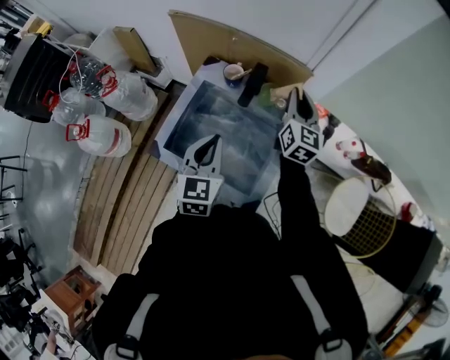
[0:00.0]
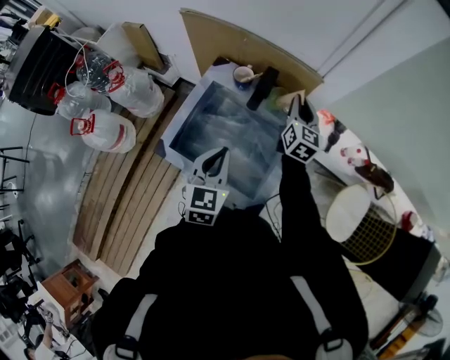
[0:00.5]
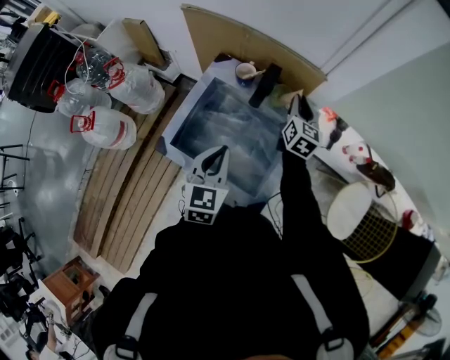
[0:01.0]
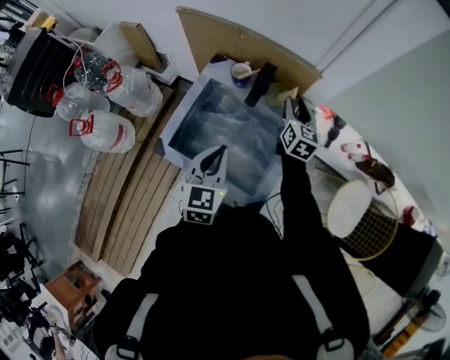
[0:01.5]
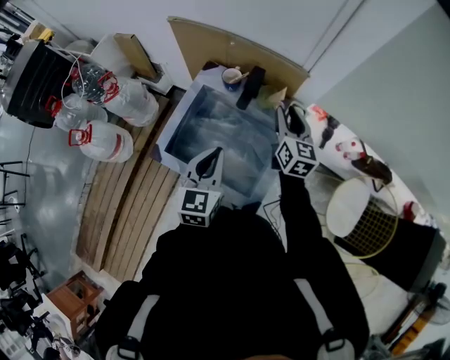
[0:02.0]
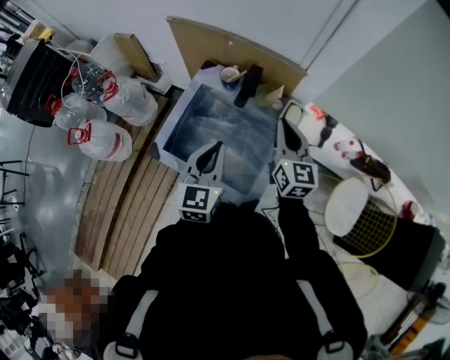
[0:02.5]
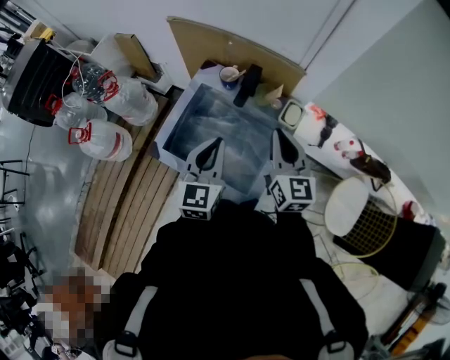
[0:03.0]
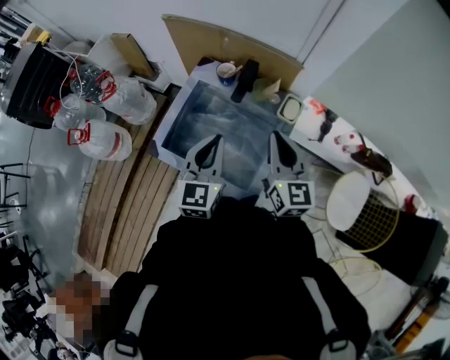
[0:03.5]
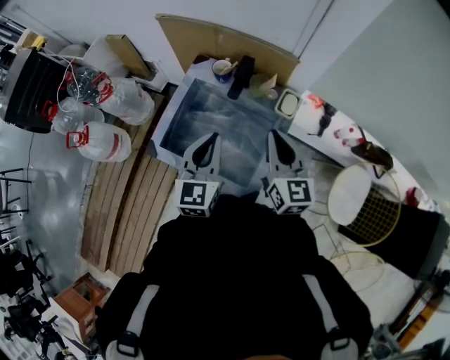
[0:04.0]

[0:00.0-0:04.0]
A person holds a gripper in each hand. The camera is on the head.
0:00.0 to 0:02.0: The right gripper changes place by some 5 cm, and opens up.
0:02.0 to 0:04.0: The right gripper travels backward and upward by some 15 cm, and closes up.

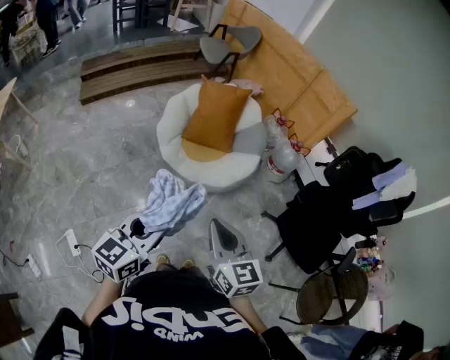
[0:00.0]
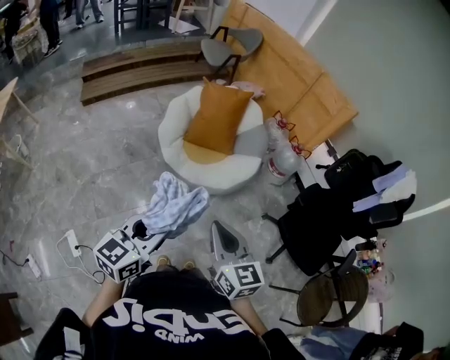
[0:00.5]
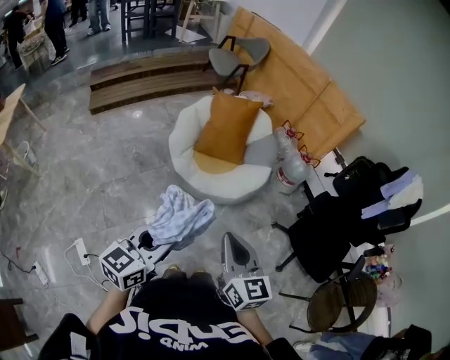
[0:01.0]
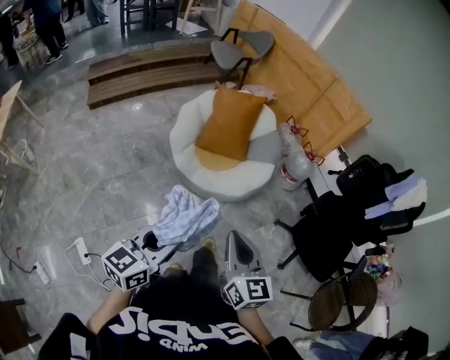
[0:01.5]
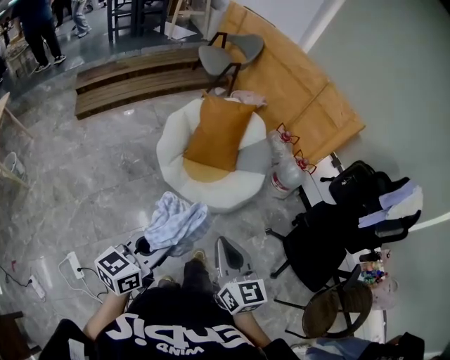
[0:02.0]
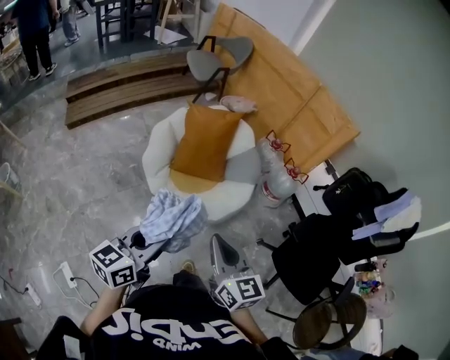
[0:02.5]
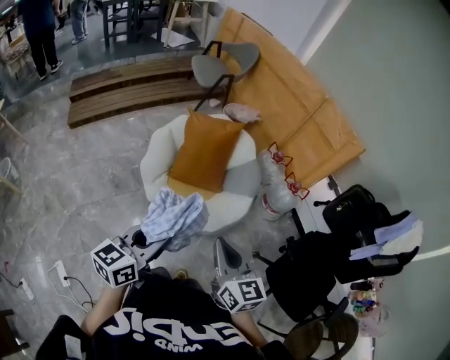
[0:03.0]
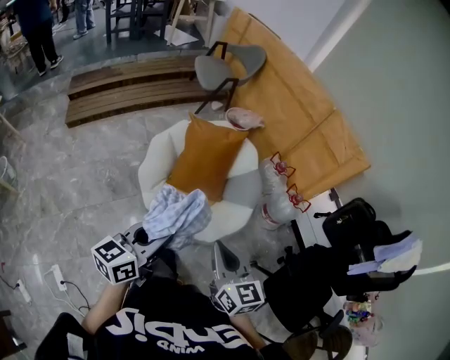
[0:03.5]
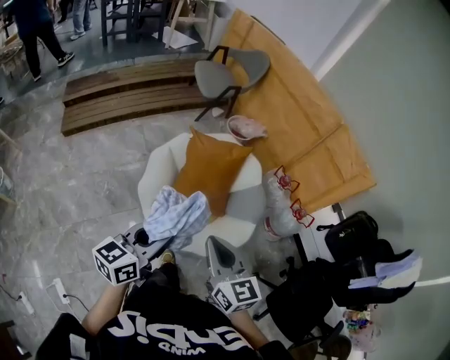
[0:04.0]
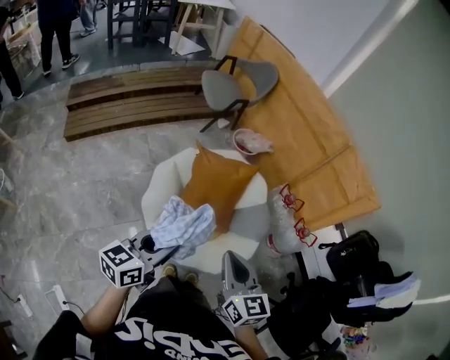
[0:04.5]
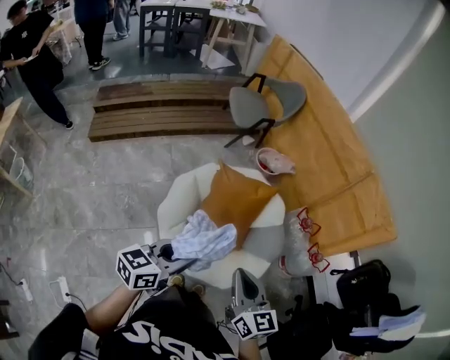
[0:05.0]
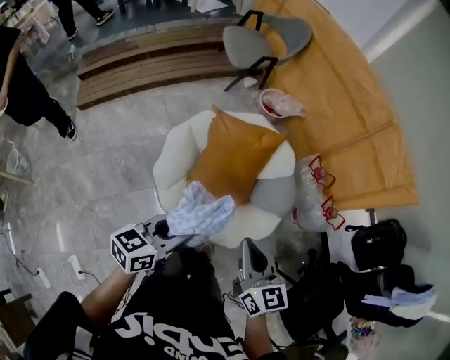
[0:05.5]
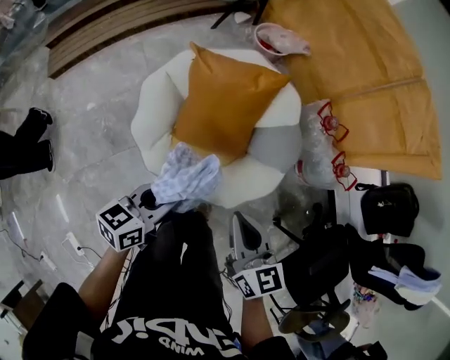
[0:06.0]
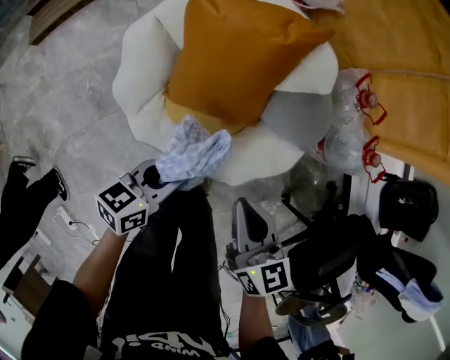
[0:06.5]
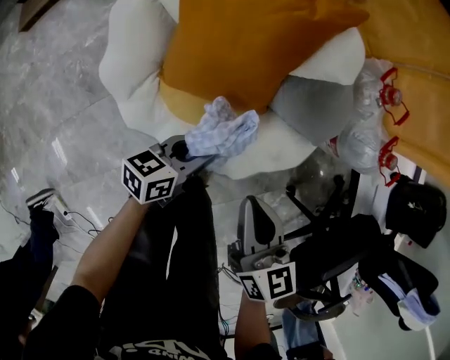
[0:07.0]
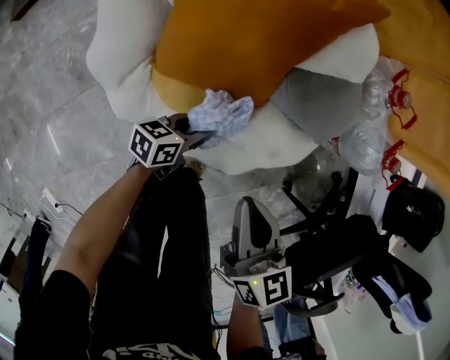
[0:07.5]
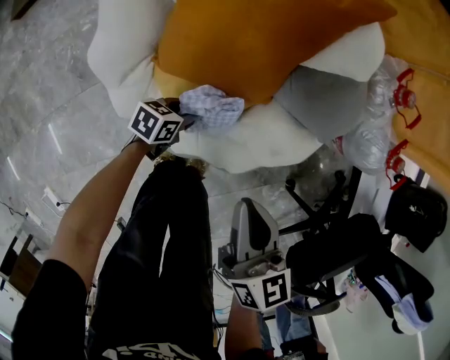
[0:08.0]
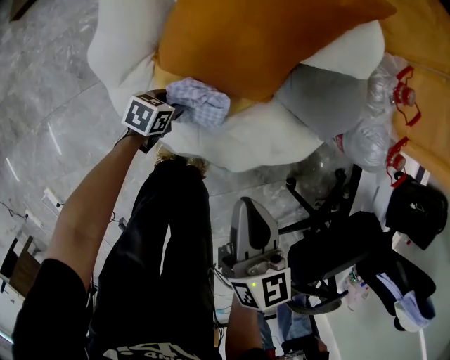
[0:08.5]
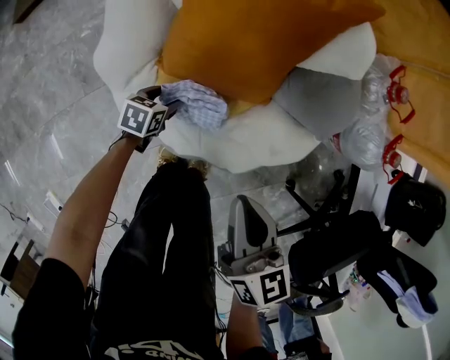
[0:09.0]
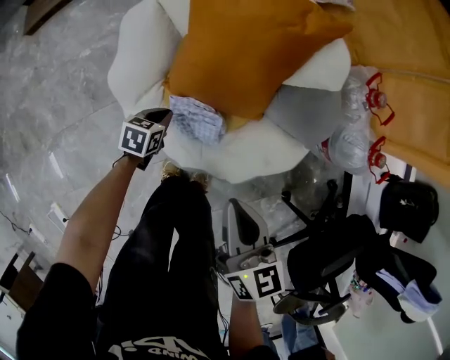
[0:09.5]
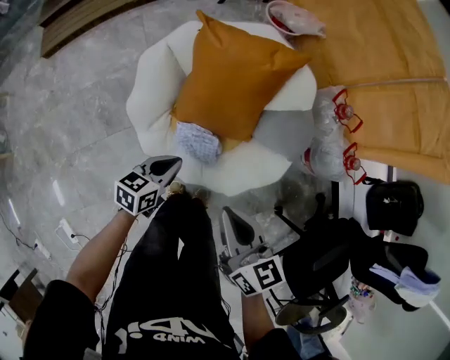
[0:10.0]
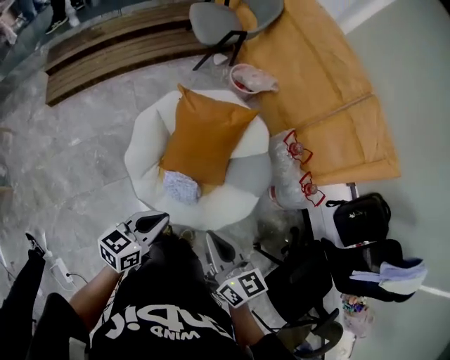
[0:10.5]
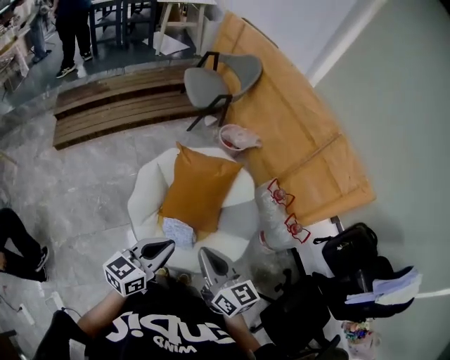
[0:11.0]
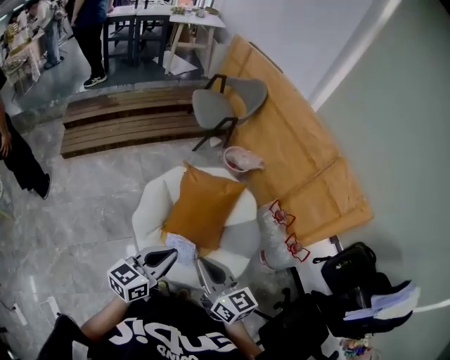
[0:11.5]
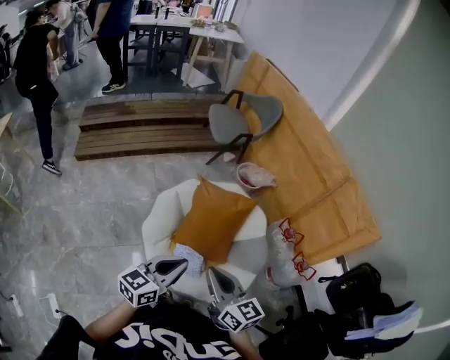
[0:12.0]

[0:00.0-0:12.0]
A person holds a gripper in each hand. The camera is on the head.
0:00.0 to 0:02.0: The grippers both shift forward by about 10 cm.
0:02.0 to 0:04.0: Both grippers move forward, approximately 40 cm.
0:04.0 to 0:06.0: Both grippers travel together downward and forward, approximately 25 cm.
0:06.0 to 0:08.0: The right gripper is displaced downward by about 25 cm, while the left gripper travels downward by about 50 cm, and turns by approximately 30 degrees.
0:08.0 to 0:10.0: The right gripper goes some 20 cm upward; the left gripper is displaced upward by some 30 cm, swivels some 20 degrees, and closes its fingers.
0:10.0 to 0:12.0: The right gripper moves upward, roughly 25 cm, and changes its angle by some 20 degrees; the left gripper shifts roughly 40 cm upward, and changes its angle by approximately 30 degrees.

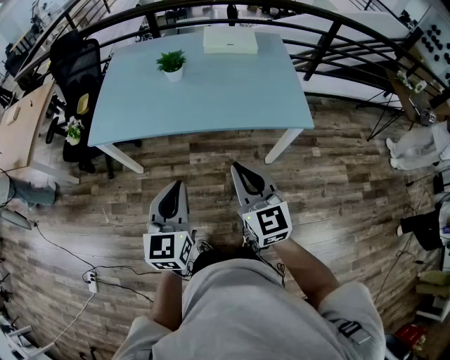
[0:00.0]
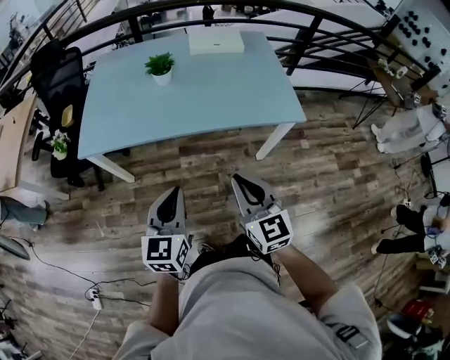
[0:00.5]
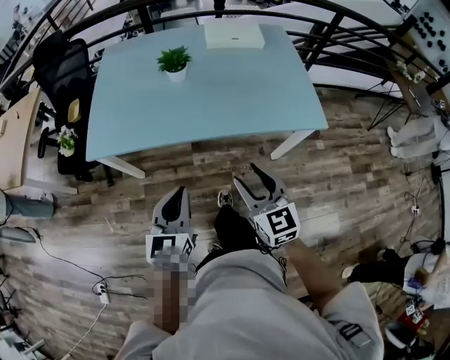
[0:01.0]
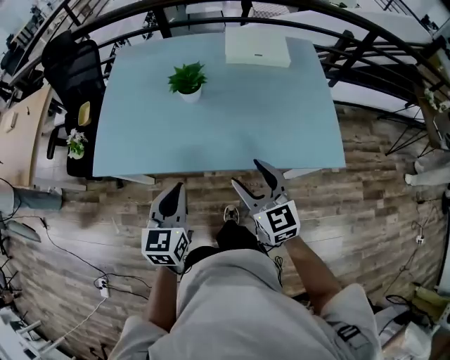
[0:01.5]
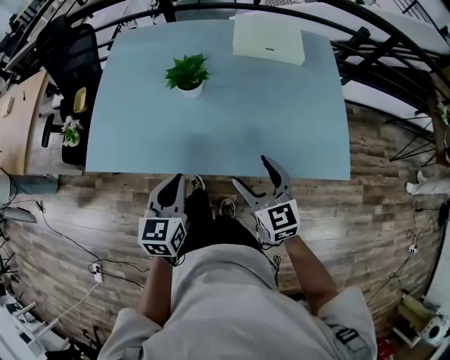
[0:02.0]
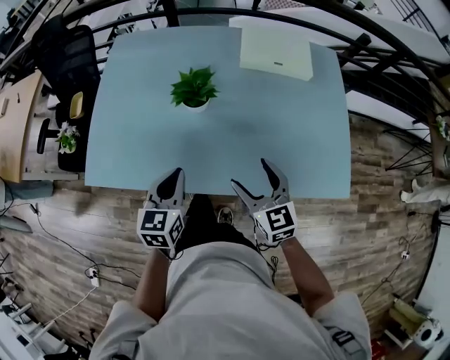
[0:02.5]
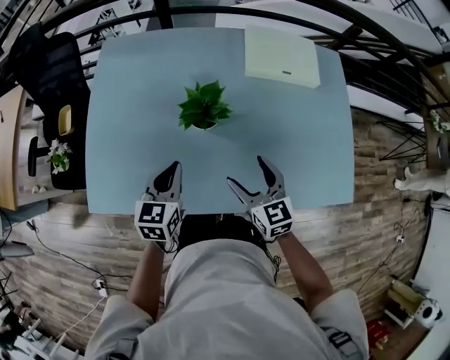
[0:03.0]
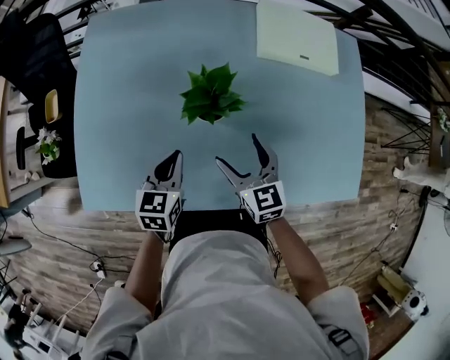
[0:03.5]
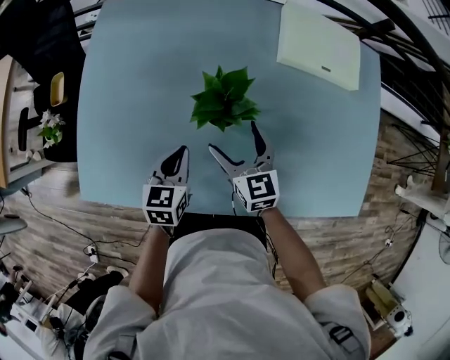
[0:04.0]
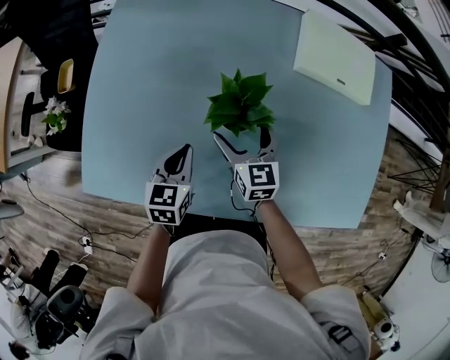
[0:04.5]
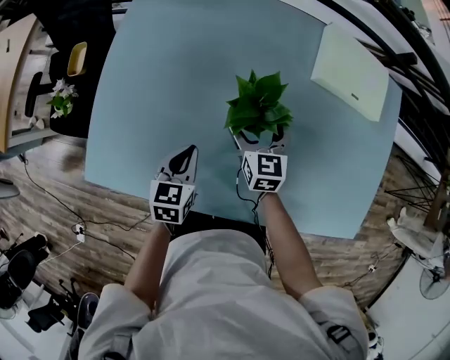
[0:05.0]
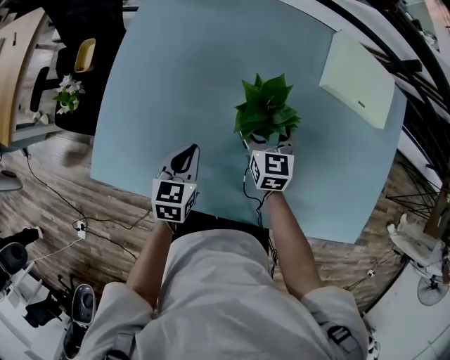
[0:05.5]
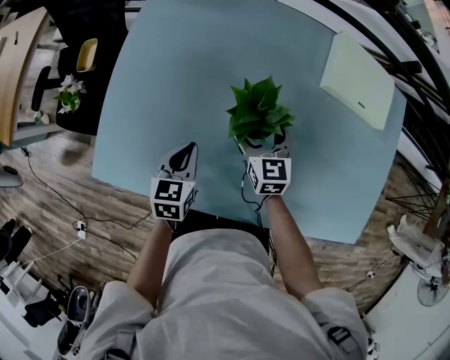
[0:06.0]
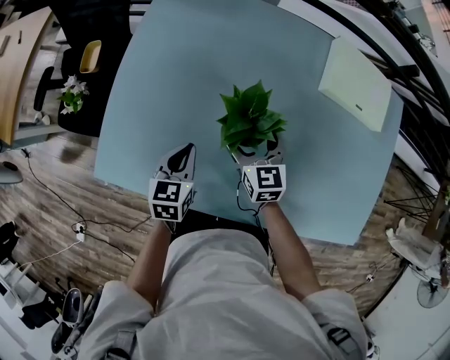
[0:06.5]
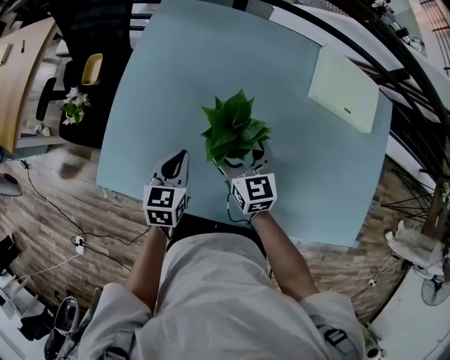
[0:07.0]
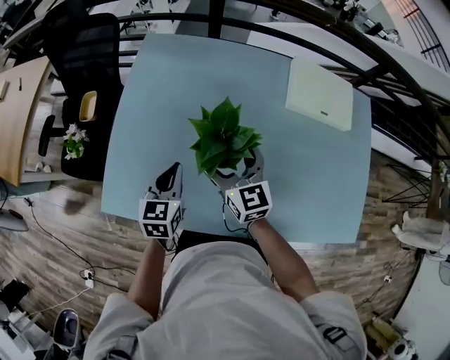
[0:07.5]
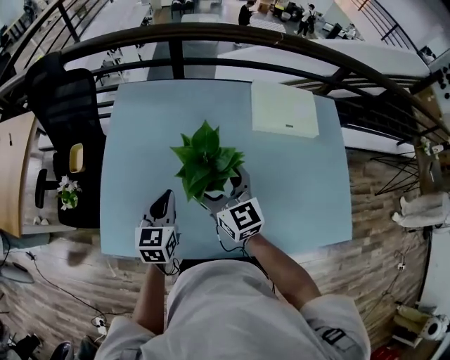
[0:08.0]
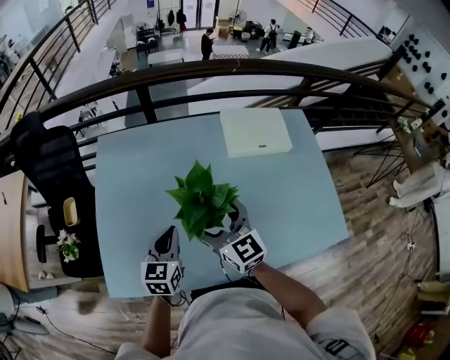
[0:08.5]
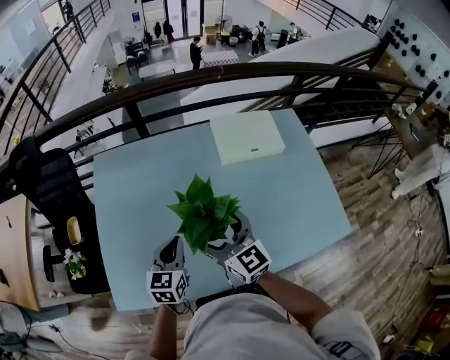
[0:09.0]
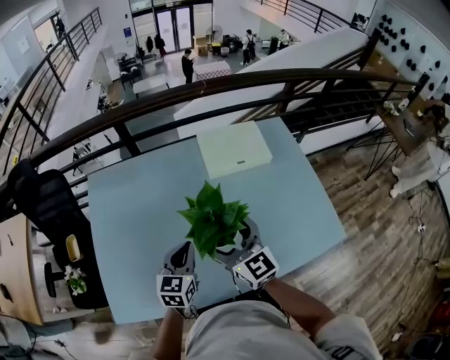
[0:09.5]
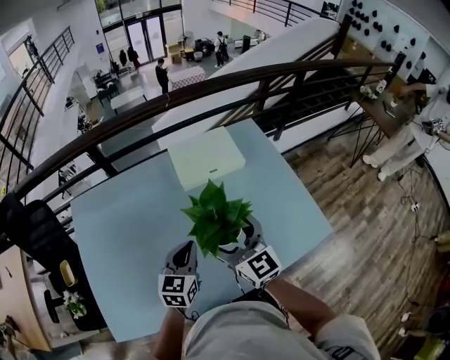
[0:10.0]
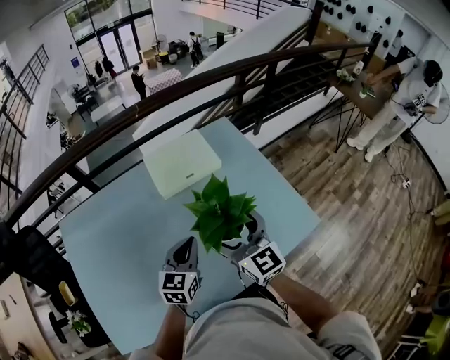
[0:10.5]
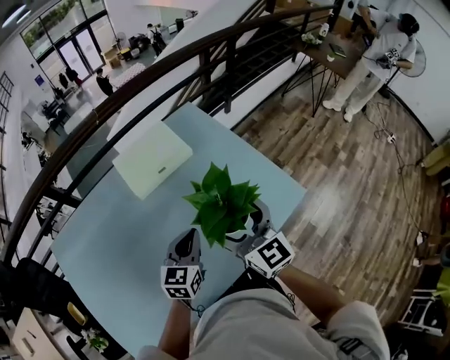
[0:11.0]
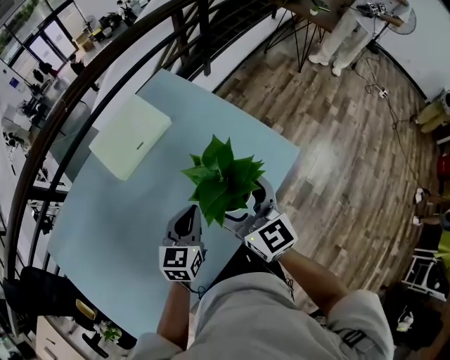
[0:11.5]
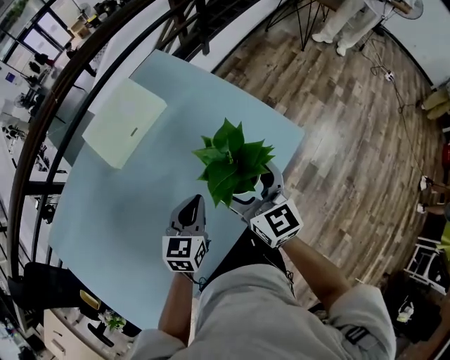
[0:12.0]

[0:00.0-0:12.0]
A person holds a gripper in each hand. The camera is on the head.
0:00.0 to 0:02.0: The left gripper goes some 30 cm forward; the right gripper moves forward and downward, some 30 cm, and opens its fingers.
0:02.0 to 0:04.0: The right gripper heads forward, to the left and downward, covering some 35 cm. Meanwhile the left gripper is displaced forward and downward by roughly 30 cm.
0:04.0 to 0:06.0: The right gripper shifts roughly 5 cm forward. The left gripper goes about 5 cm to the left.
0:06.0 to 0:08.0: The left gripper moves upward, about 15 cm; the right gripper moves upward, approximately 20 cm, and rotates about 20 degrees.
0:08.0 to 0:10.0: Both grippers travel together to the right, some 25 cm. The right gripper changes its angle by approximately 20 degrees, while the left gripper swivels roughly 30 degrees.
0:10.0 to 0:12.0: The right gripper ends up roughly 25 cm from where it was, and turns by approximately 30 degrees, while the left gripper changes place by about 20 cm, and turns by some 30 degrees.
